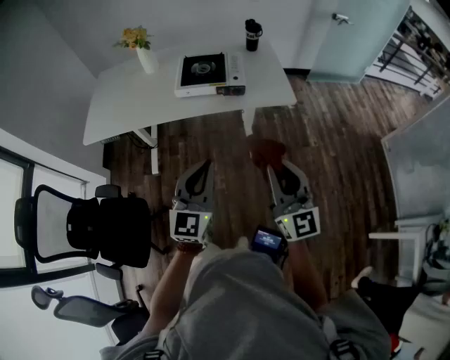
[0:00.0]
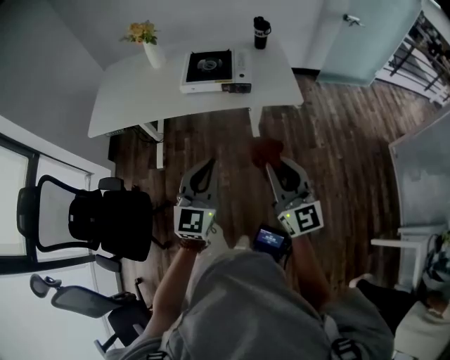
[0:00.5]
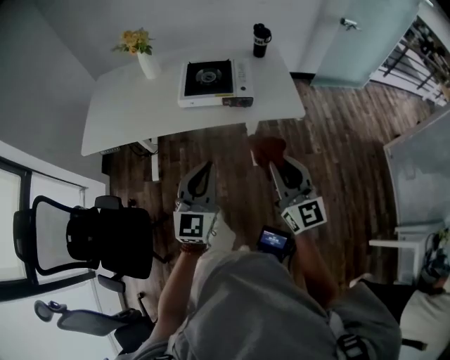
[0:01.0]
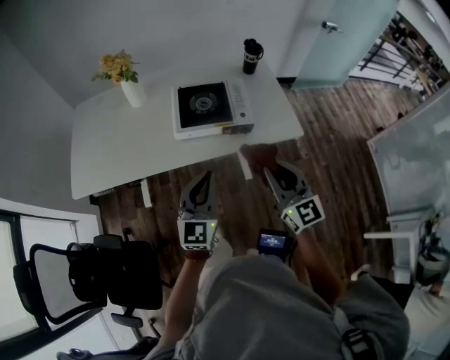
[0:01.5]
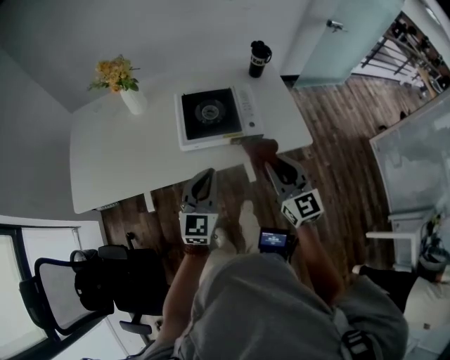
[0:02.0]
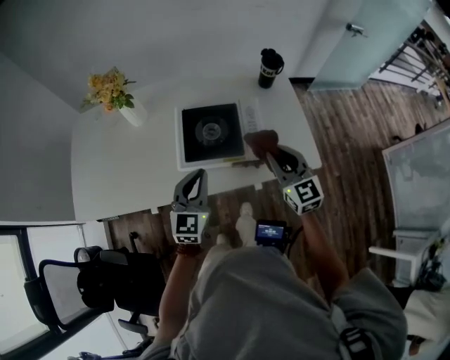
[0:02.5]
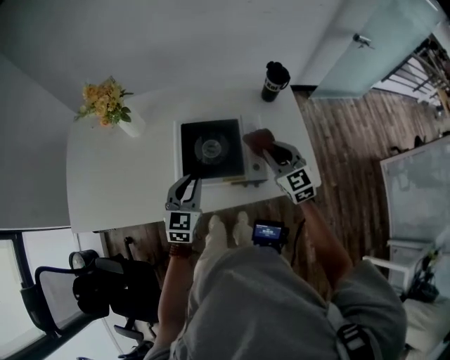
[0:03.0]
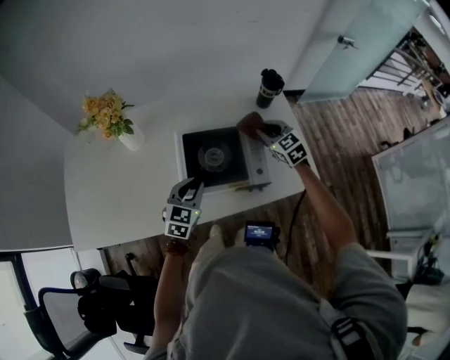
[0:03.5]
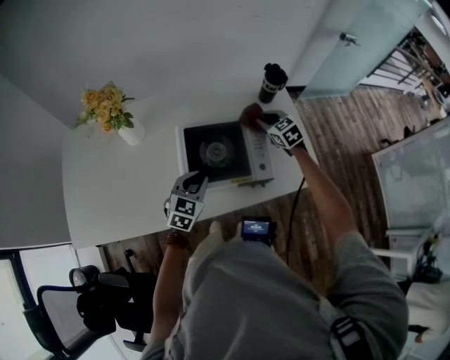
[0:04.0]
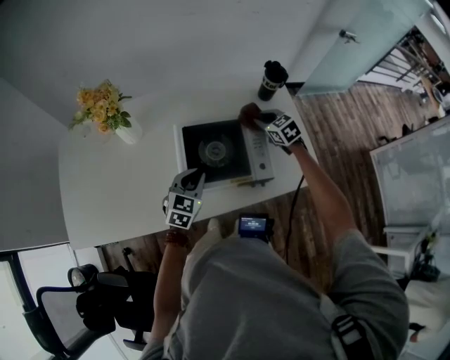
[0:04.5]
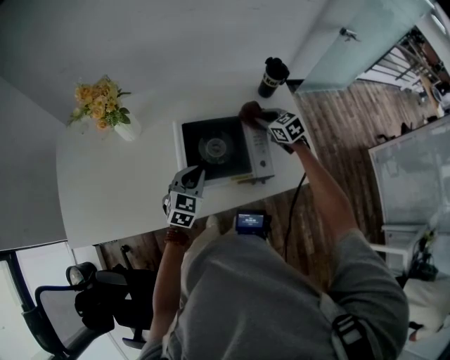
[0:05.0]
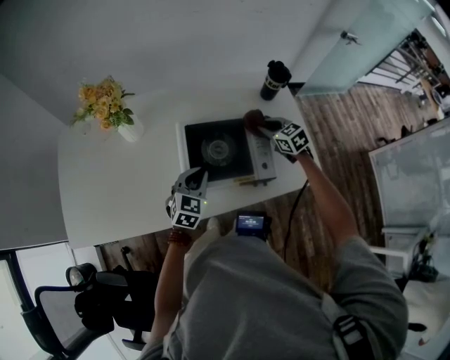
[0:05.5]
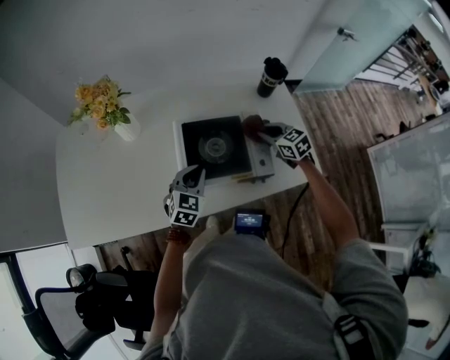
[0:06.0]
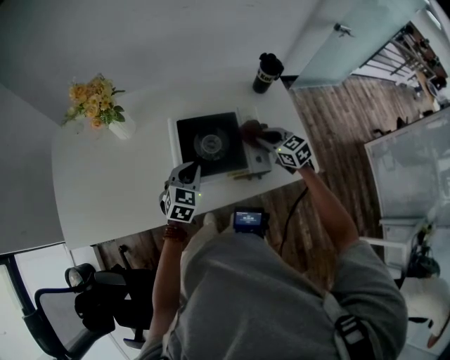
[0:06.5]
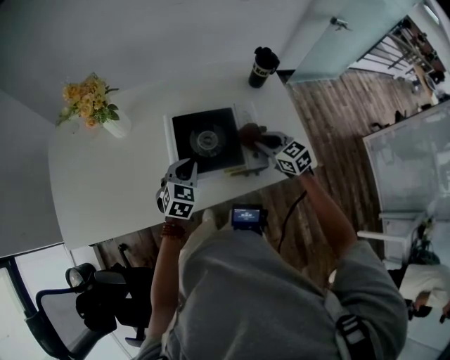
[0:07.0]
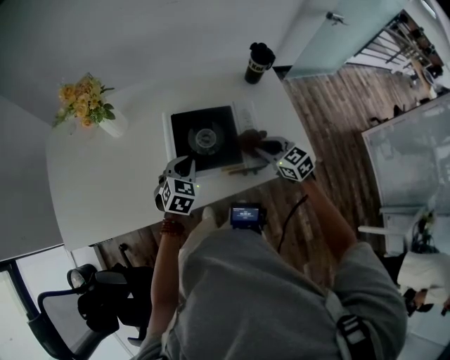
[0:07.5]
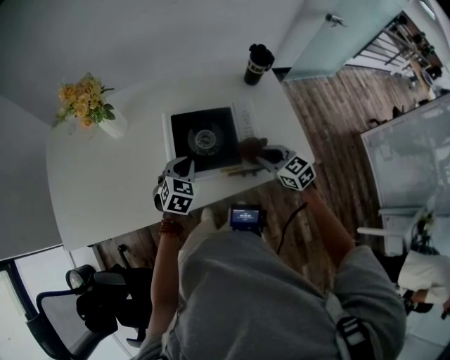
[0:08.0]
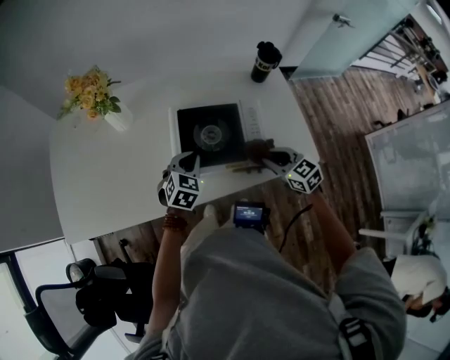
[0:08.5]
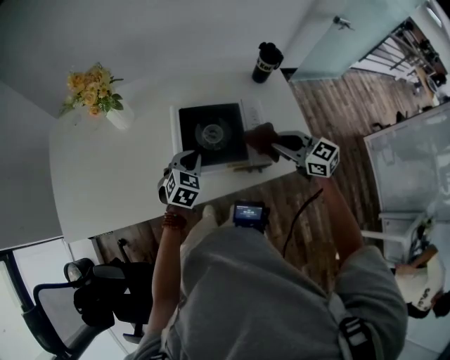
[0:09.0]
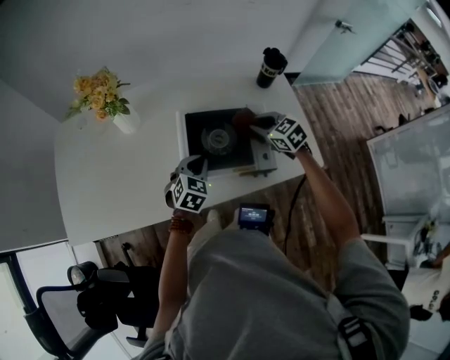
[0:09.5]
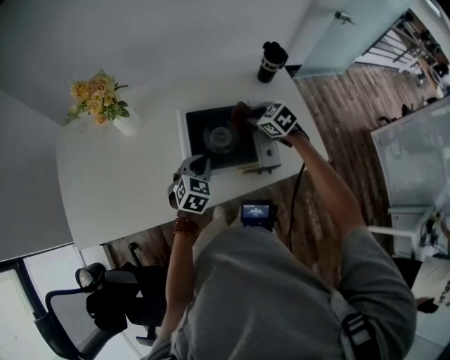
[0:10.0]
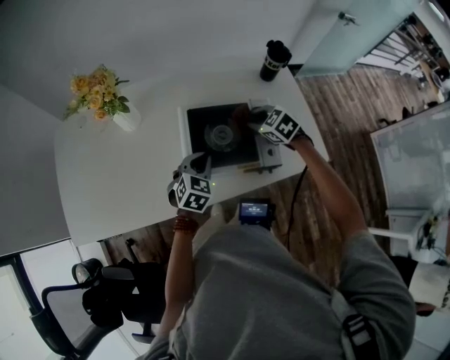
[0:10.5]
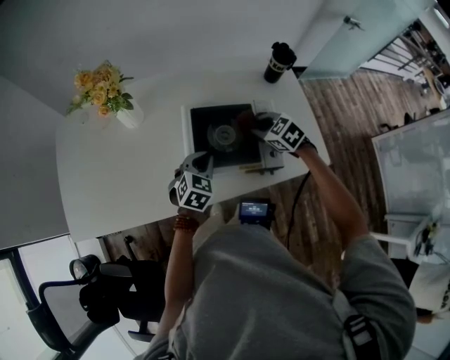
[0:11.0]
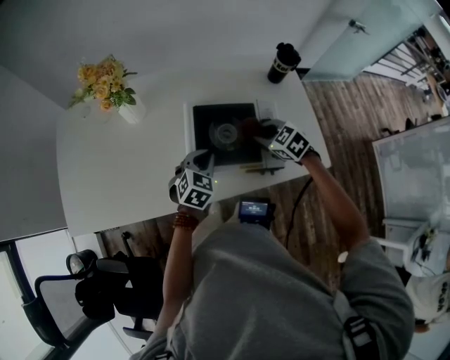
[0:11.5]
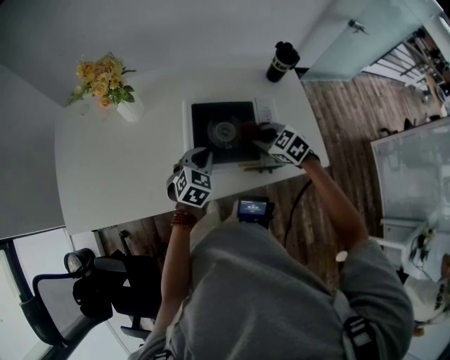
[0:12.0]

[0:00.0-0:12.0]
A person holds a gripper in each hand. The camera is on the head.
0:00.0 to 0:02.0: Both grippers move forward, about 30 cm.
0:02.0 to 0:04.0: The right gripper goes roughly 40 cm forward and downward, and tips its fingers downward by approximately 30 degrees. The left gripper moves forward and downward, some 25 cm, and swivels some 30 degrees.
0:04.0 to 0:06.0: The right gripper is displaced backward by some 5 cm.
0:06.0 to 0:08.0: The right gripper heads backward, covering some 15 cm.
0:08.0 to 0:10.0: The right gripper is displaced forward by some 15 cm.
0:10.0 to 0:12.0: The right gripper goes roughly 10 cm backward.

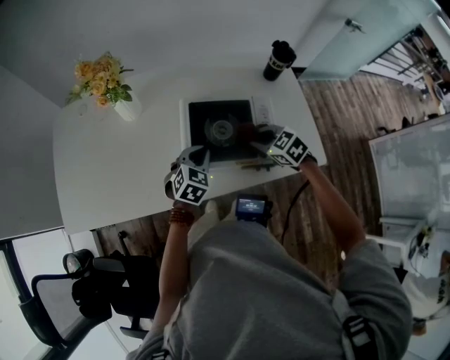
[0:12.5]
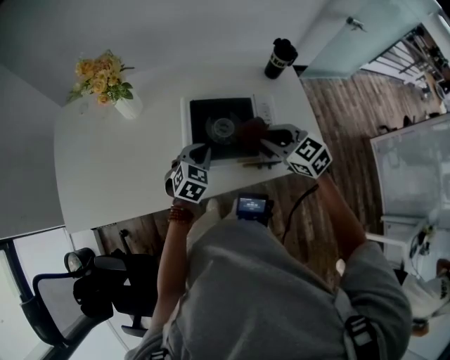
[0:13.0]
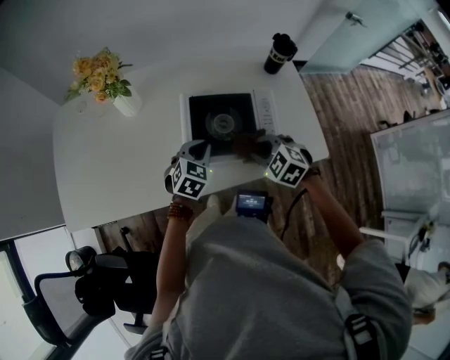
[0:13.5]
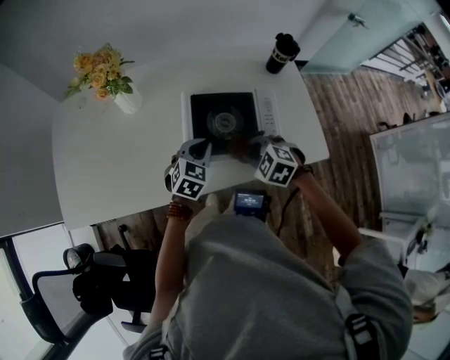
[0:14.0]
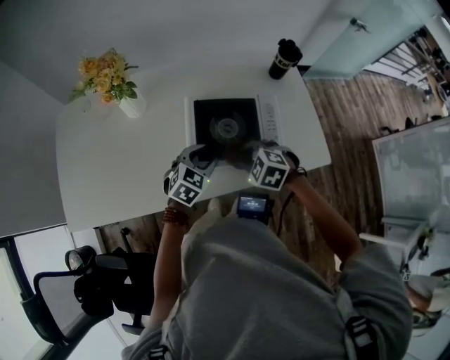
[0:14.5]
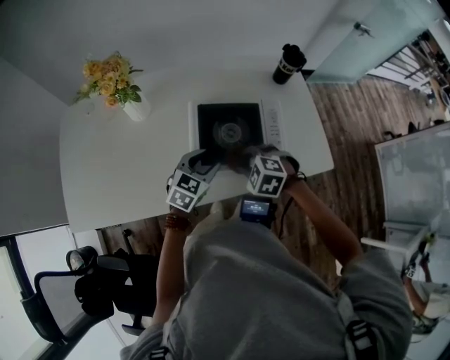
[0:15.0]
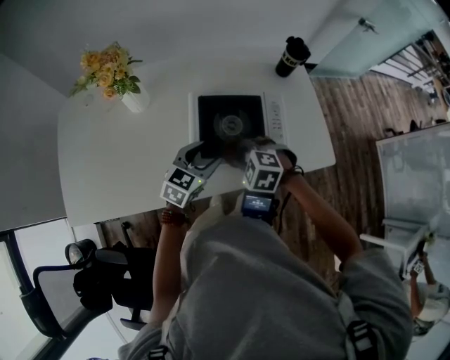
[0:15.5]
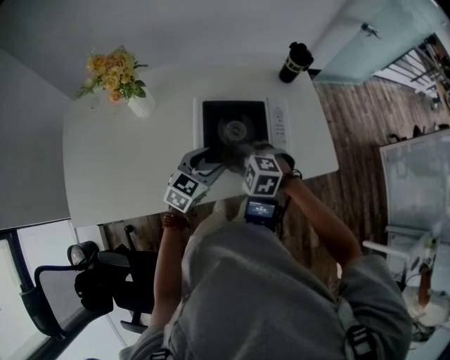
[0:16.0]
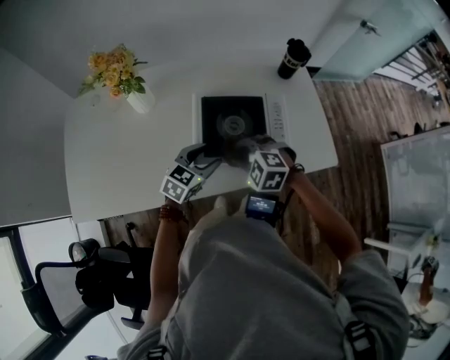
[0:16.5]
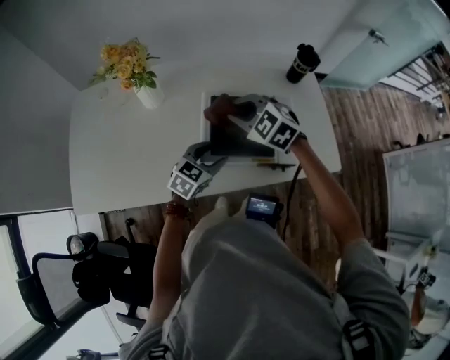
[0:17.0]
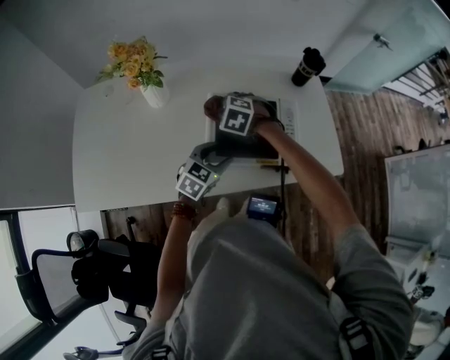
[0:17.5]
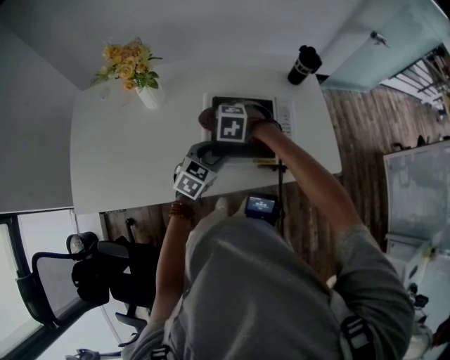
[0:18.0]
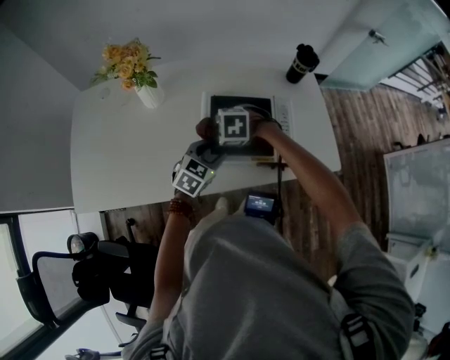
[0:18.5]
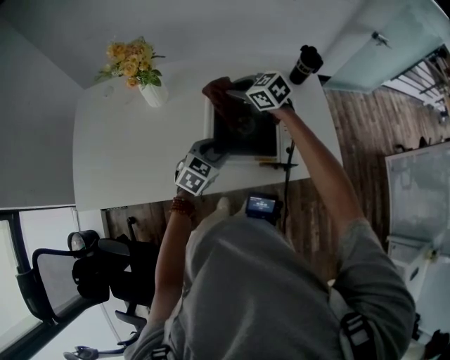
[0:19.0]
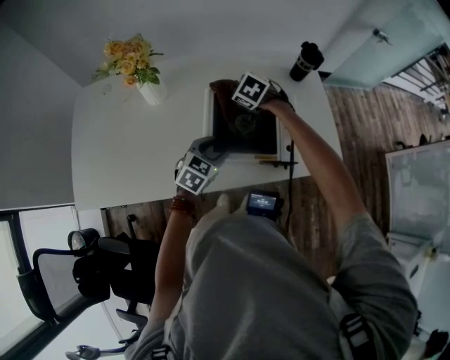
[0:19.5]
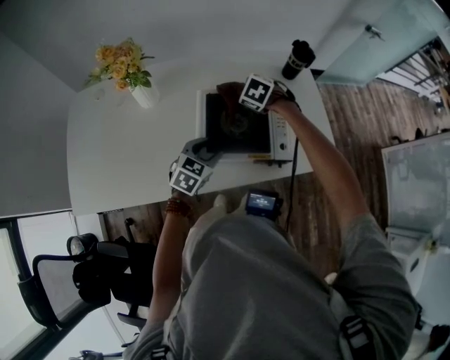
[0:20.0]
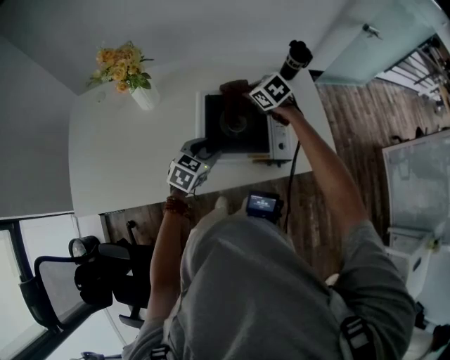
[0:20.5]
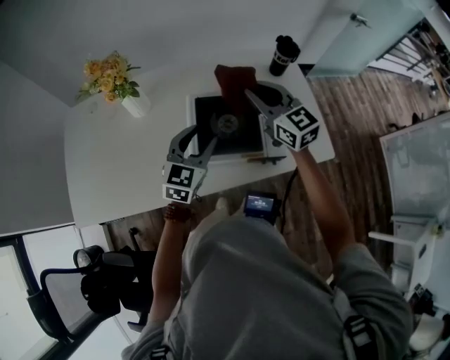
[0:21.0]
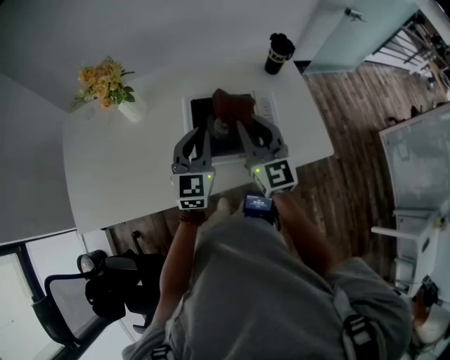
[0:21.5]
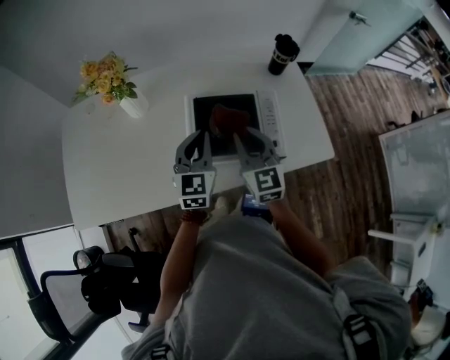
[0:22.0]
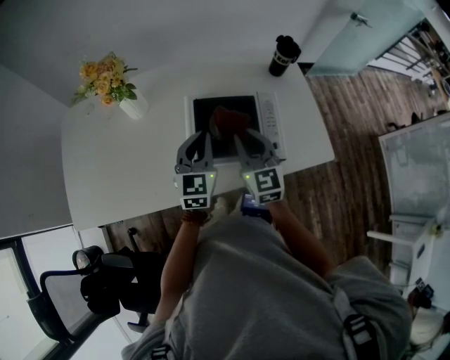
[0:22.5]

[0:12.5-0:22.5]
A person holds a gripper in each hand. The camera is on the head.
0:12.5 to 0:14.5: The left gripper opens its fingers, while the right gripper travels to the left and backward by roughly 10 cm, reaches about 10 cm upward, then returns, and turns by some 20 degrees.
0:14.5 to 0:16.5: There are only small adjustments of the grippers.
0:16.5 to 0:18.5: The right gripper goes upward and returns, roughly 10 cm each way, and swivels roughly 20 degrees.
0:18.5 to 0:20.5: The right gripper ends up some 20 cm from where it was, and rotates approximately 50 degrees.
0:20.5 to 0:22.5: The left gripper is displaced upward by approximately 10 cm, rotates about 40 degrees, and closes its fingers, while the right gripper shifts some 20 cm backward and upward, and angles its fingers upward, by approximately 40 degrees.

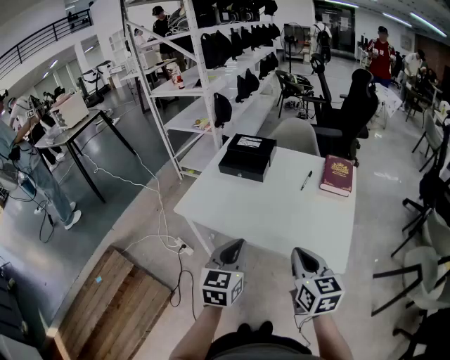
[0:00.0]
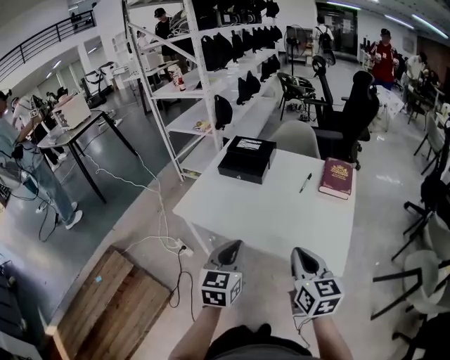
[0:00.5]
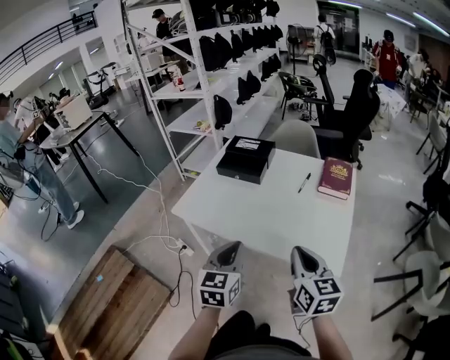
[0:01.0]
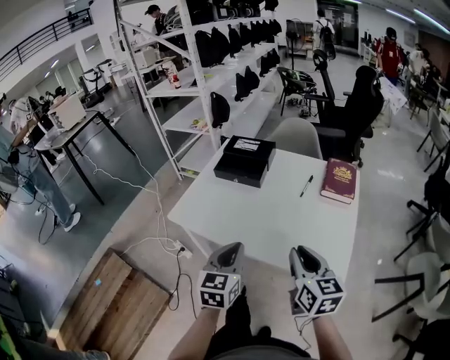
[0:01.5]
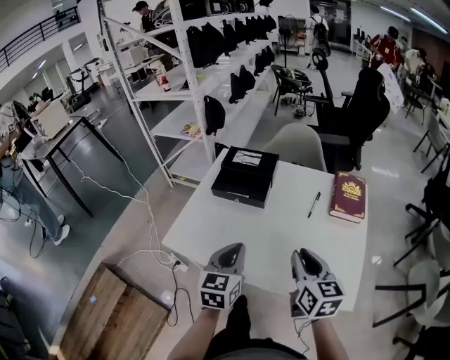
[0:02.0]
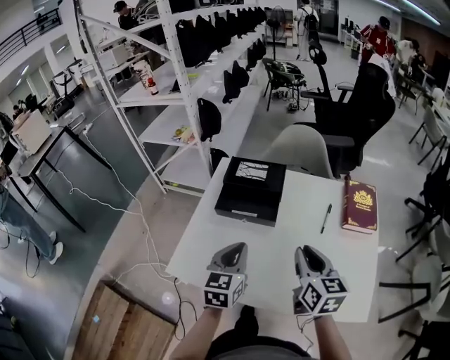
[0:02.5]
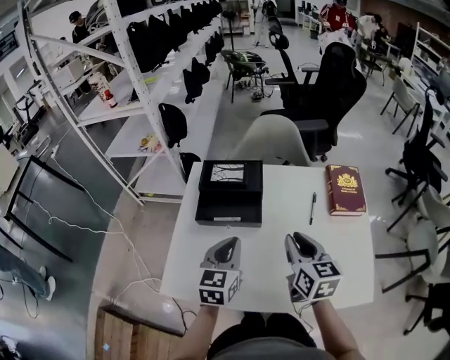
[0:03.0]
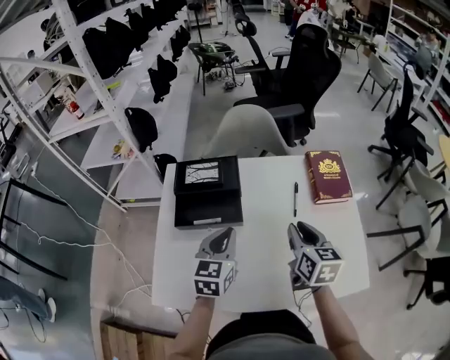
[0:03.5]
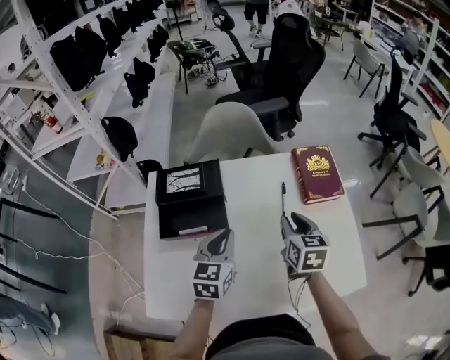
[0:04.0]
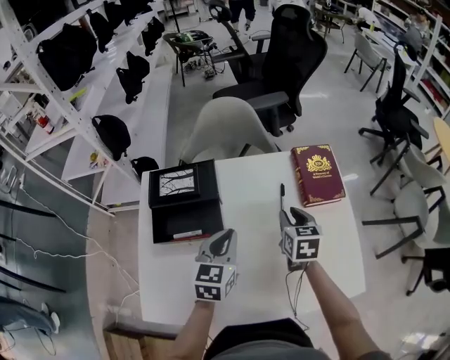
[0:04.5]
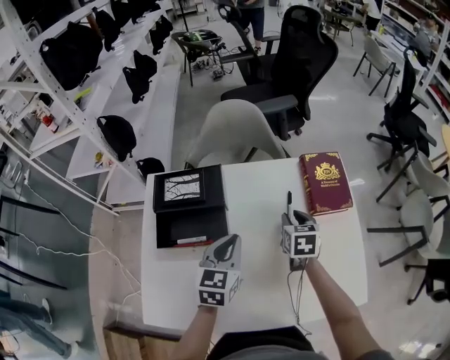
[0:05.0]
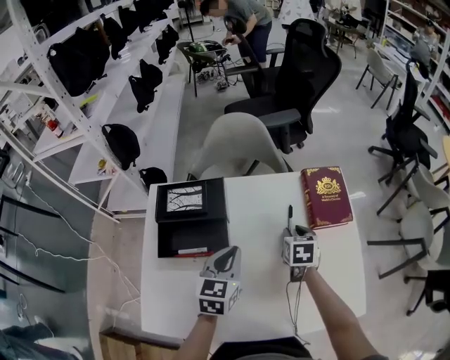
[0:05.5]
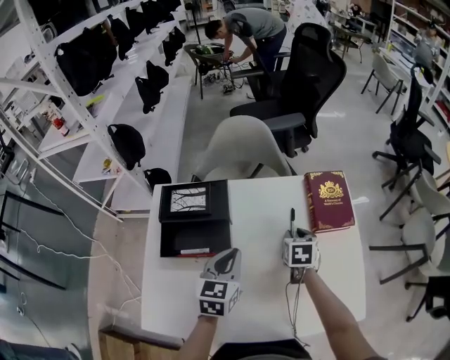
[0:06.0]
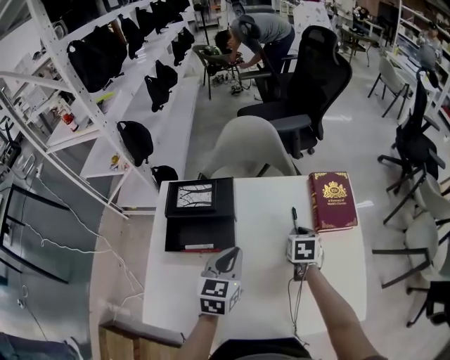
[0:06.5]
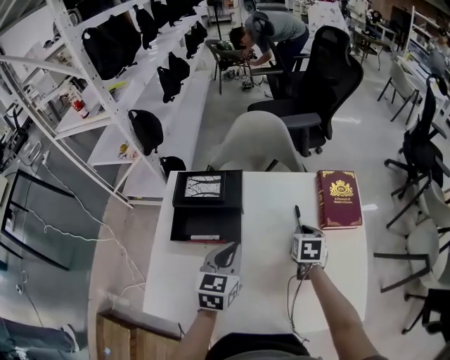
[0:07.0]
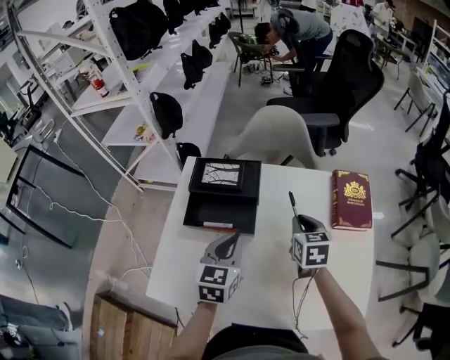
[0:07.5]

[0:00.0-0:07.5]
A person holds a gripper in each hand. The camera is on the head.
0:00.0 to 0:02.0: Both grippers move forward, approximately 15 cm.
0:02.0 to 0:04.0: The right gripper ends up some 20 cm from where it was, and changes its angle by some 30 degrees. The left gripper ends up some 20 cm from where it was, and turns by some 30 degrees.
0:04.0 to 0:05.5: The right gripper heads downward and forward, covering some 15 cm.
0:05.5 to 0:07.5: The left gripper goes about 5 cm to the left; the right gripper is displaced to the left and upward by about 10 cm, and closes its fingers.
